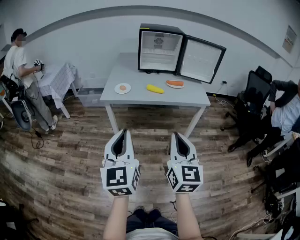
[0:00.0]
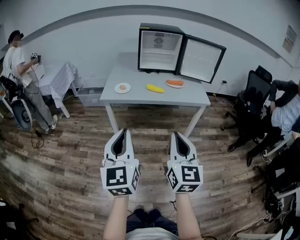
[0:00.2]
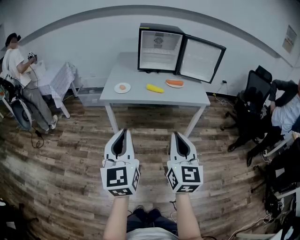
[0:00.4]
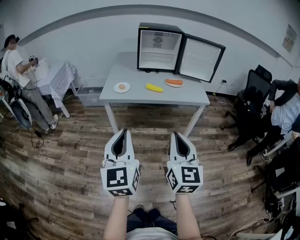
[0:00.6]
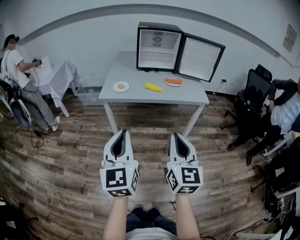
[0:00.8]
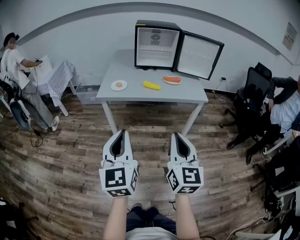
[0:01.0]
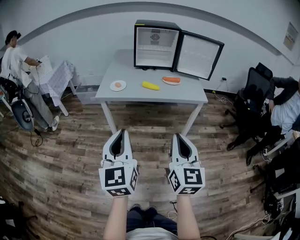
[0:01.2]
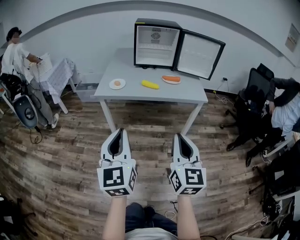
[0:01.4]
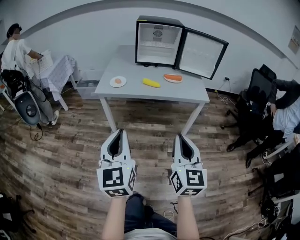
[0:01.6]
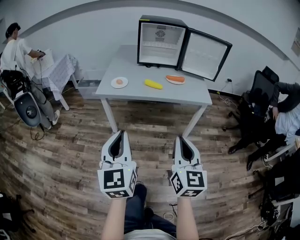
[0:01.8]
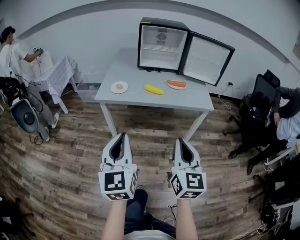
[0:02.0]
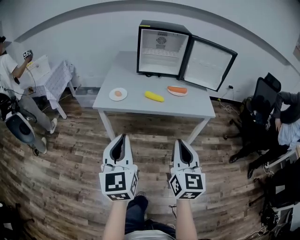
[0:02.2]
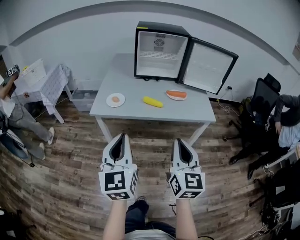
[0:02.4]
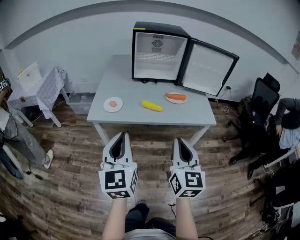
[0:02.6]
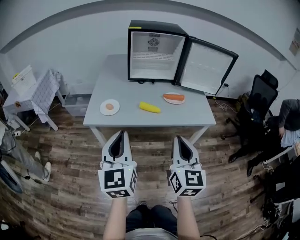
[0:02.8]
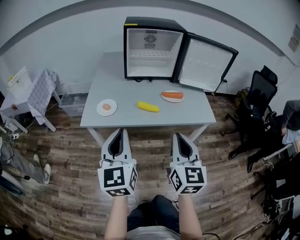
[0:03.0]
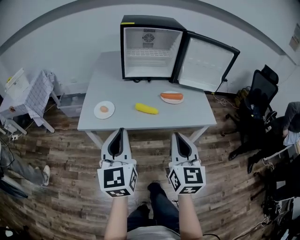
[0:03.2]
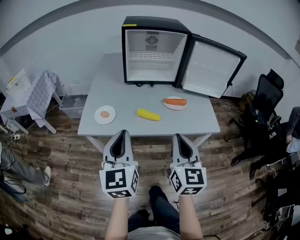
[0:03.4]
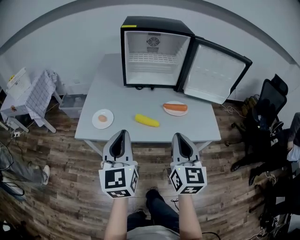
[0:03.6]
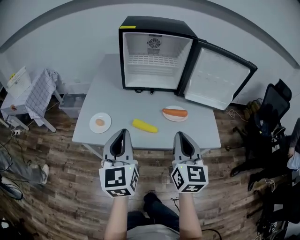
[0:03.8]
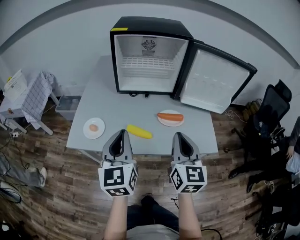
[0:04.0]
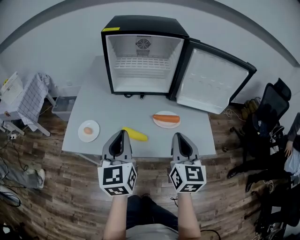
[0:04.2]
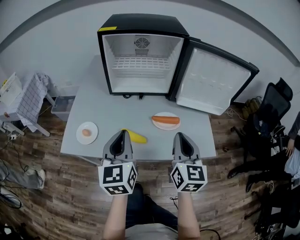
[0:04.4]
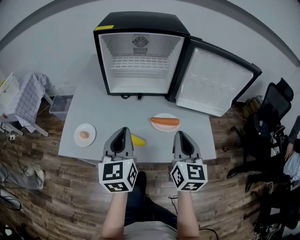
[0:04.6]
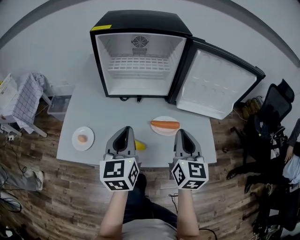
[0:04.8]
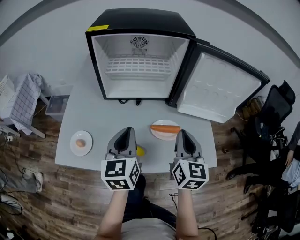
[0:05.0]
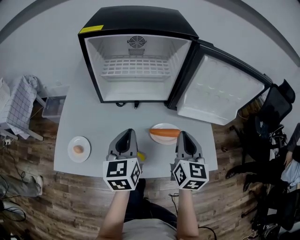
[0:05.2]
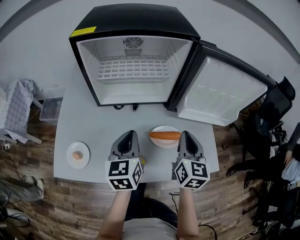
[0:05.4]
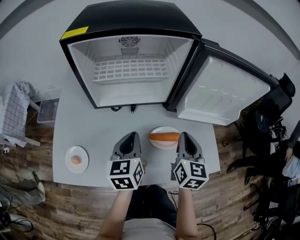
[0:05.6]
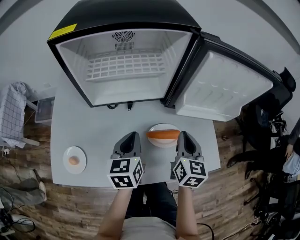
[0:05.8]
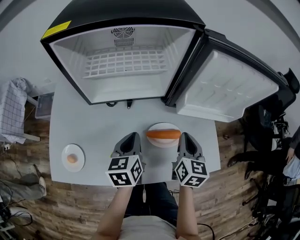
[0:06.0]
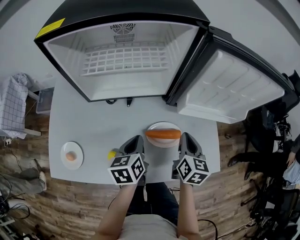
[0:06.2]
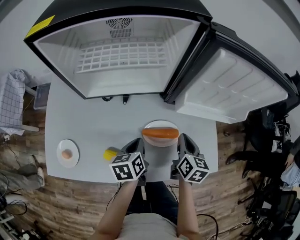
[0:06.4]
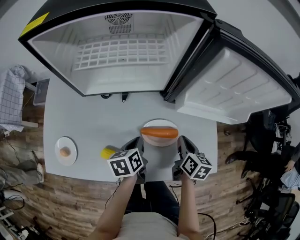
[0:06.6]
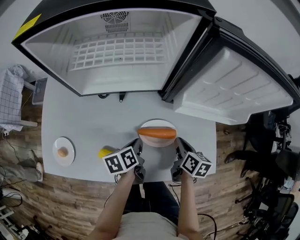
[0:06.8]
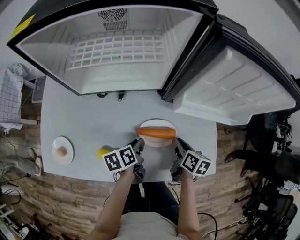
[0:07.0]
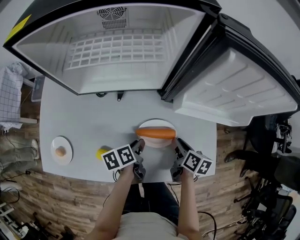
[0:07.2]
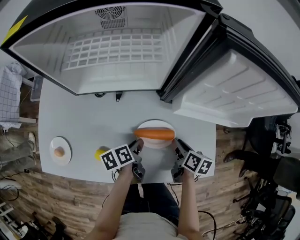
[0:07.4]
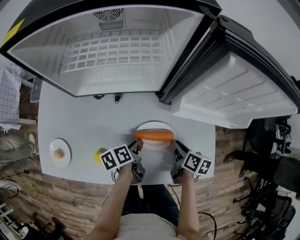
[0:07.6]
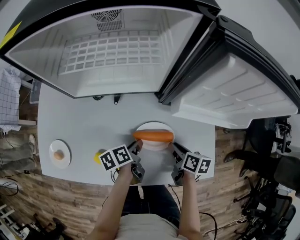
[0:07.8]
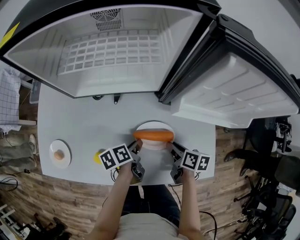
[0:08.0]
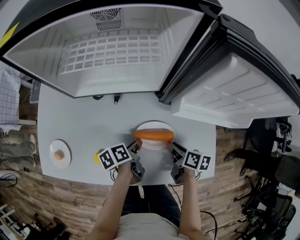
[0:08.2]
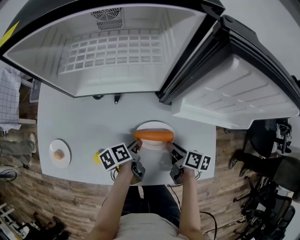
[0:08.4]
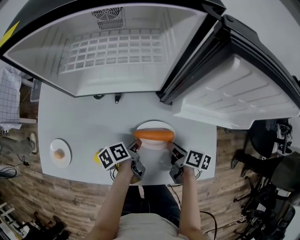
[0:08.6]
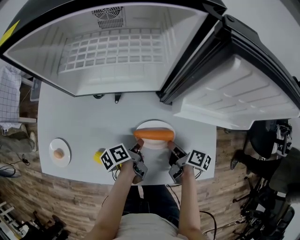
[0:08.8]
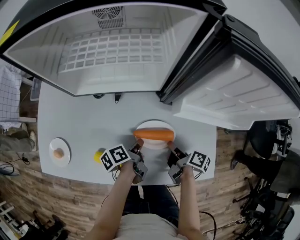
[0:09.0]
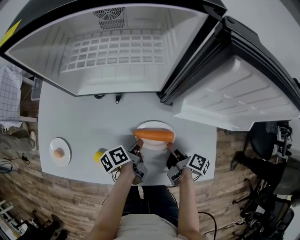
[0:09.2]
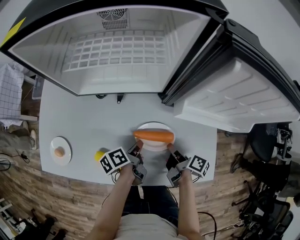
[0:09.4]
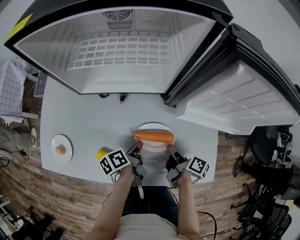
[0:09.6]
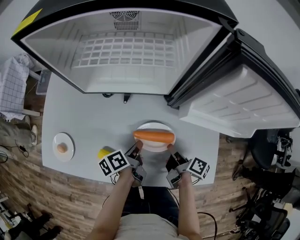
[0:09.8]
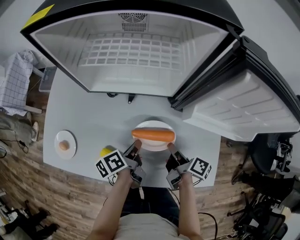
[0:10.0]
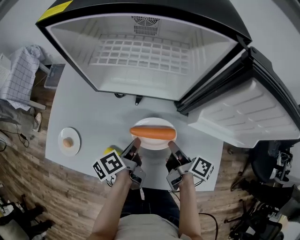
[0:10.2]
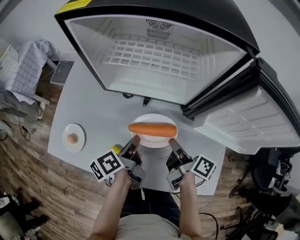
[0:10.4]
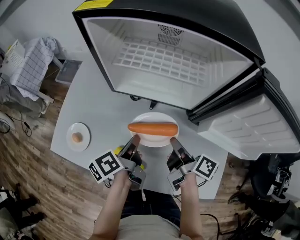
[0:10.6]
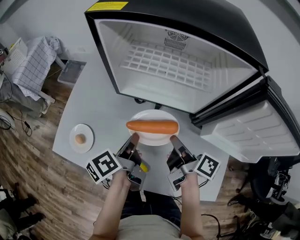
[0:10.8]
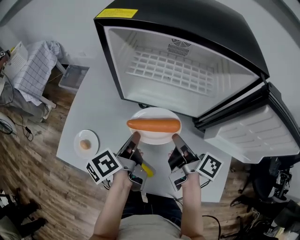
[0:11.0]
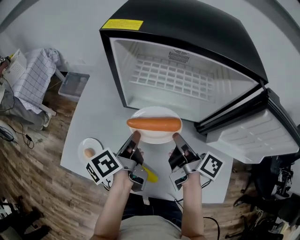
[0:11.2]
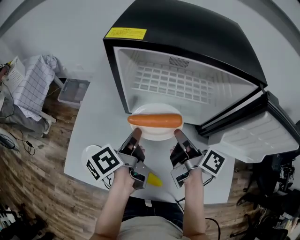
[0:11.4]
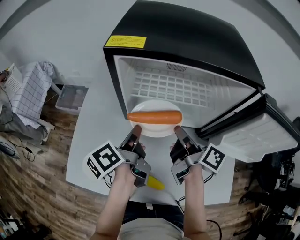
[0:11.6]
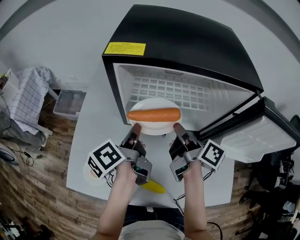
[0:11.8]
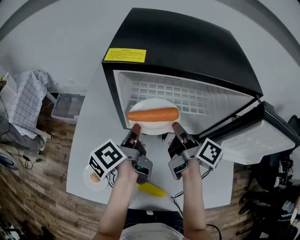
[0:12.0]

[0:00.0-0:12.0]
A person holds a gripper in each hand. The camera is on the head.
0:00.0 to 0:01.6: Both grippers travel together to the right, about 5 cm.
0:01.6 to 0:03.0: Both grippers travel together forward, some 30 cm.
0:03.0 to 0:04.4: The two grippers go some 30 cm forward and to the right.
0:04.4 to 0:06.0: The grippers both shift forward and downward by about 25 cm. The left gripper turns by roughly 30 degrees. The right gripper swivels approximately 20 degrees.
0:06.0 to 0:07.6: The two grippers go approximately 15 cm downward. The left gripper twists roughly 40 degrees counterclockwise, seen from behind, and opens up, while the right gripper swivels about 40 degrees, and opens.
0:07.6 to 0:09.0: The right gripper swivels roughly 30 degrees.
0:09.0 to 0:10.4: The left gripper moves upward and to the left, about 15 cm, and turns by roughly 20 degrees. The right gripper goes approximately 15 cm upward, to the left and forward.
0:10.4 to 0:12.0: Both grippers travel together forward, upward and to the left, approximately 25 cm.

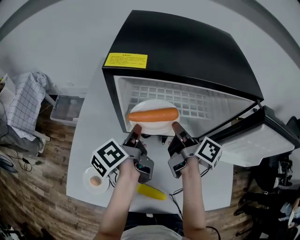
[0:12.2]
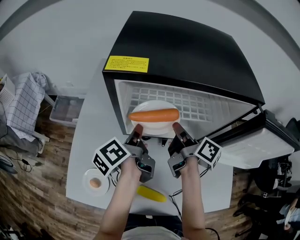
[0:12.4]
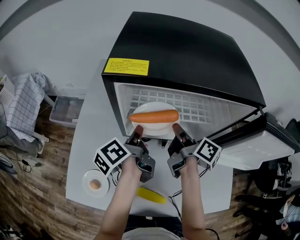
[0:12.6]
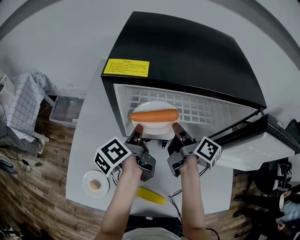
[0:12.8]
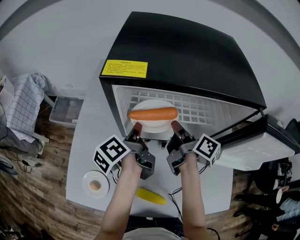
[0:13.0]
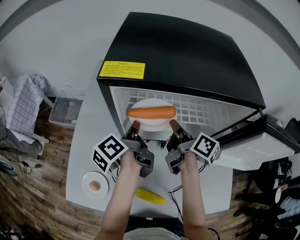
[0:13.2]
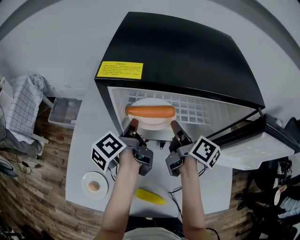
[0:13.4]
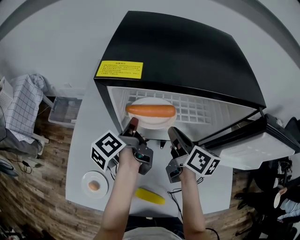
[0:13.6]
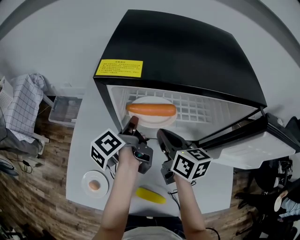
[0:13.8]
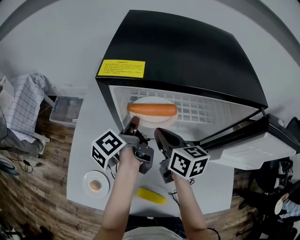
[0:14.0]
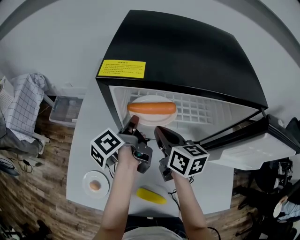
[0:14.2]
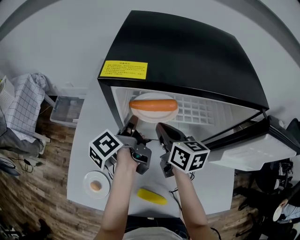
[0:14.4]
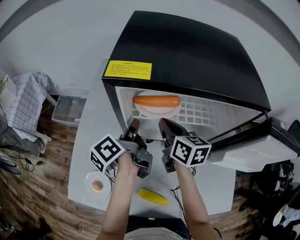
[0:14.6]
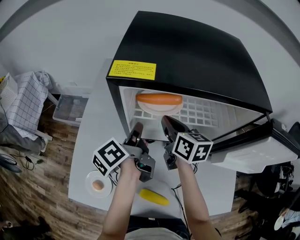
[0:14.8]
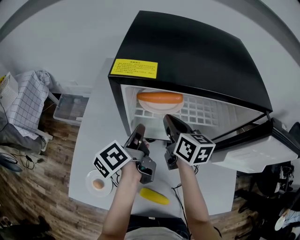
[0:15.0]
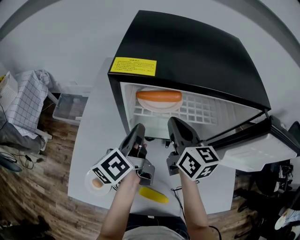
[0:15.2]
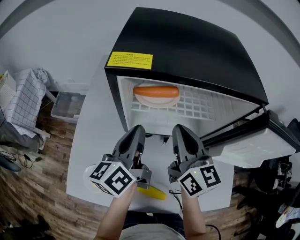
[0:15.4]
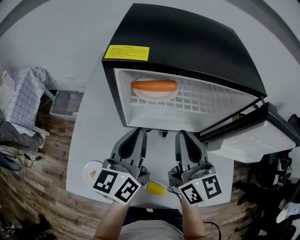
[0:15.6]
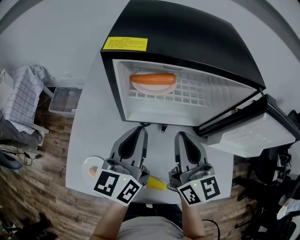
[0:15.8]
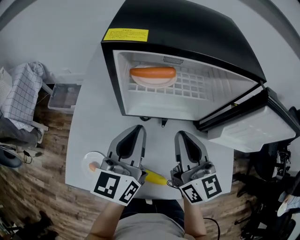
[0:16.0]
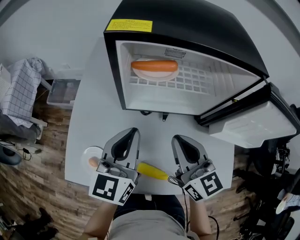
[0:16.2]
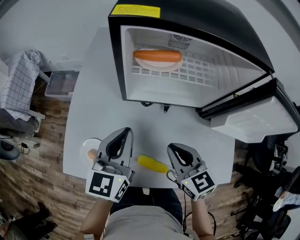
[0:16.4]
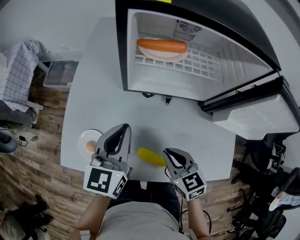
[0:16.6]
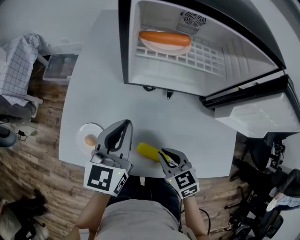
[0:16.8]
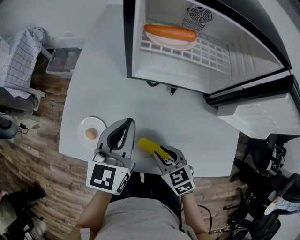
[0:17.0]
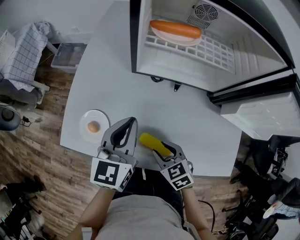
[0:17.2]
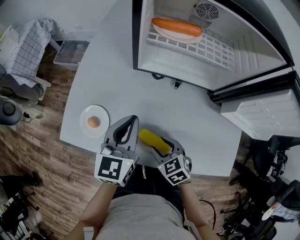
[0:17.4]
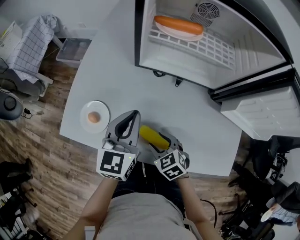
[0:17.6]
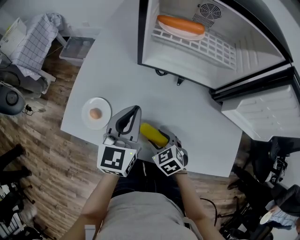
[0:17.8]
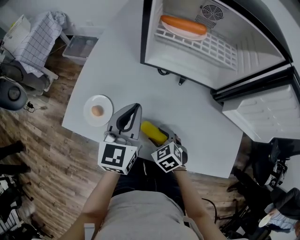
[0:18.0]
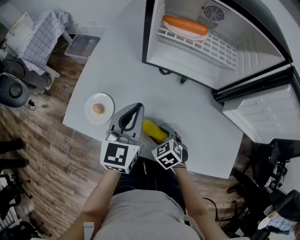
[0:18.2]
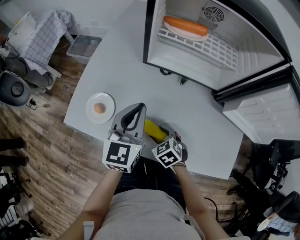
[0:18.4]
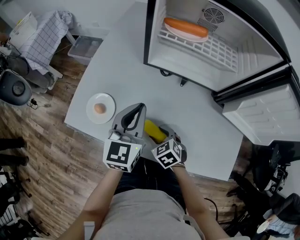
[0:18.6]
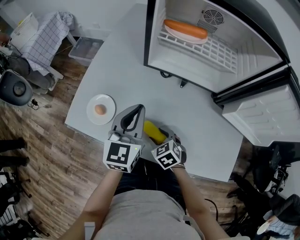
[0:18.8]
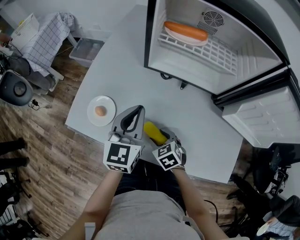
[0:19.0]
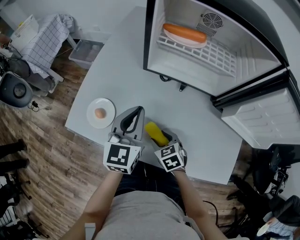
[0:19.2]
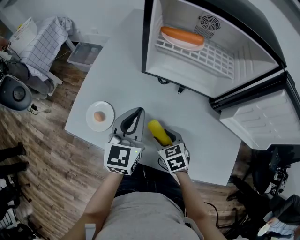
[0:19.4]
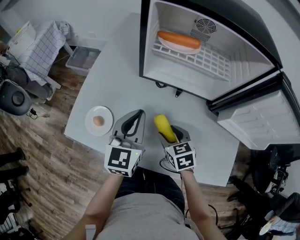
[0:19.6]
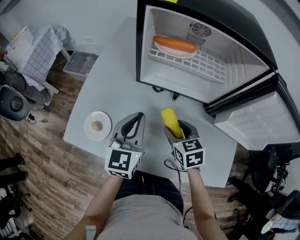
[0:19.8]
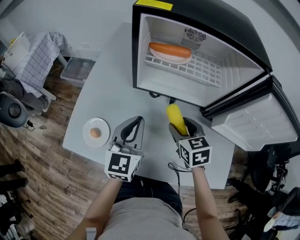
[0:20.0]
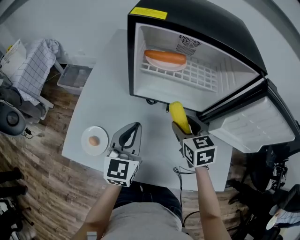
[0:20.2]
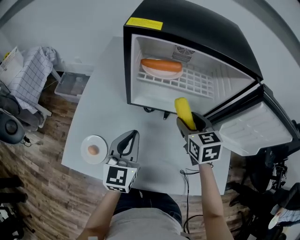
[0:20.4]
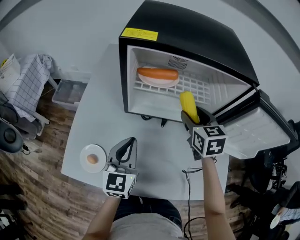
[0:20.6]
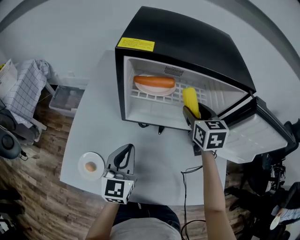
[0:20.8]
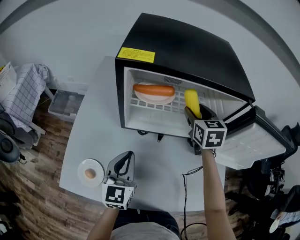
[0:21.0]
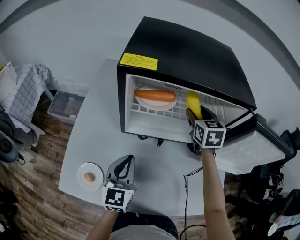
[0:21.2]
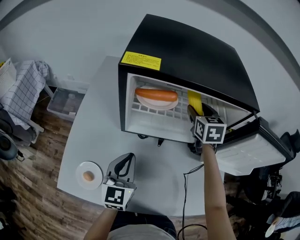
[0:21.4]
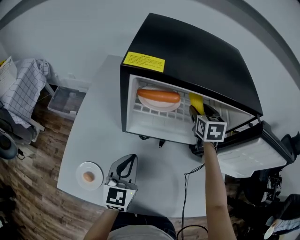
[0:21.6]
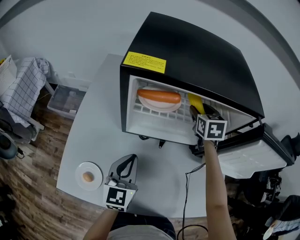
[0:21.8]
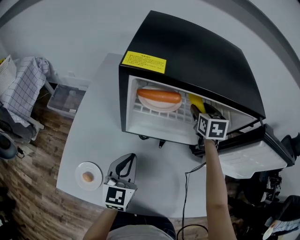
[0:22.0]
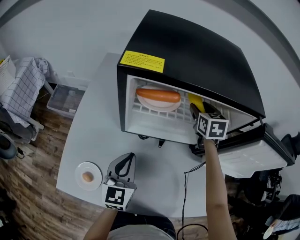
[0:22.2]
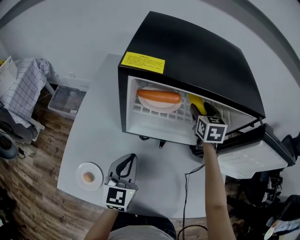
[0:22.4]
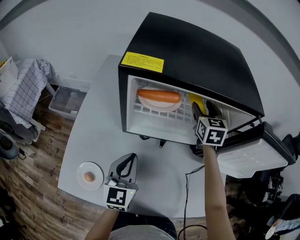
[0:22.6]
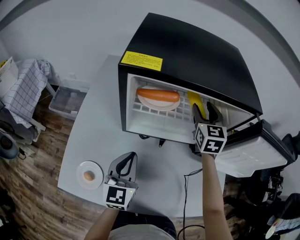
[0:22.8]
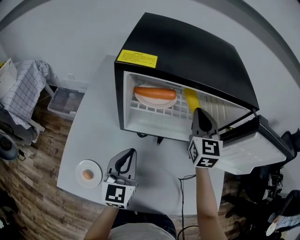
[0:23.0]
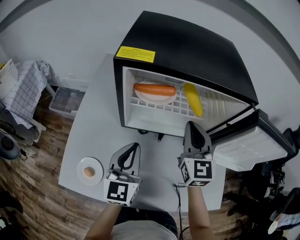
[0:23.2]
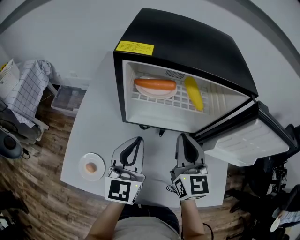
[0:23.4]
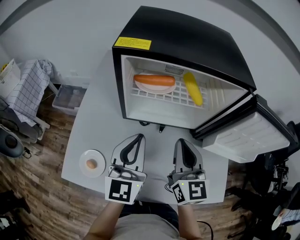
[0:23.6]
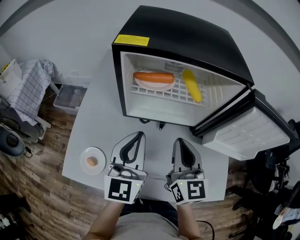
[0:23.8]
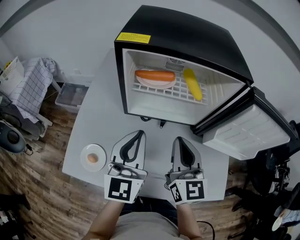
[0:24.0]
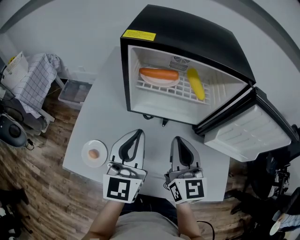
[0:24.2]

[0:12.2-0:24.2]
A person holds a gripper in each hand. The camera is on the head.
0:12.2 to 0:13.8: The left gripper goes roughly 5 cm forward. Meanwhile the right gripper travels to the left by some 5 cm, and changes its angle by approximately 40 degrees.
0:13.8 to 0:15.2: The right gripper shifts roughly 5 cm upward. Meanwhile the left gripper changes place by approximately 5 cm, and rotates approximately 20 degrees.
0:15.2 to 0:16.6: The left gripper heads backward, covering some 15 cm, and rotates around the line of its fingers by roughly 50 degrees, clockwise from behind, while the right gripper moves backward and downward, about 30 cm, and changes its angle by roughly 40 degrees.
0:16.6 to 0:18.2: The right gripper shifts roughly 15 cm downward, changes its angle by about 30 degrees, and opens; the left gripper moves backward, roughly 5 cm.
0:18.2 to 0:19.8: The right gripper goes roughly 20 cm upward, to the right and forward, and rotates some 30 degrees.
0:19.8 to 0:21.2: The left gripper goes about 5 cm forward, while the right gripper heads forward, upward and to the right, covering approximately 30 cm, and rotates some 30 degrees.
0:21.2 to 0:22.6: There are only small adjustments of the grippers.
0:22.6 to 0:24.2: The right gripper goes some 30 cm backward, rotates approximately 30 degrees, and closes up, while the left gripper shifts roughly 15 cm upward and backward.
